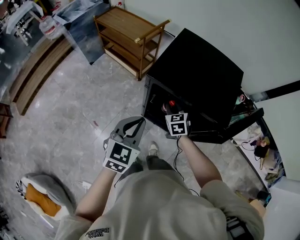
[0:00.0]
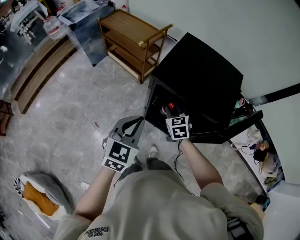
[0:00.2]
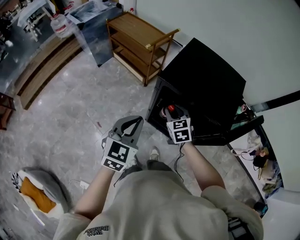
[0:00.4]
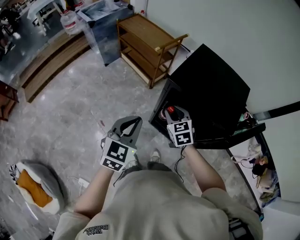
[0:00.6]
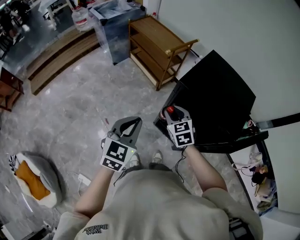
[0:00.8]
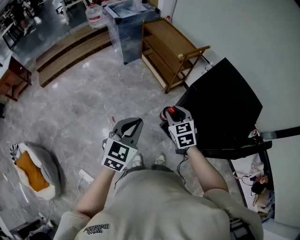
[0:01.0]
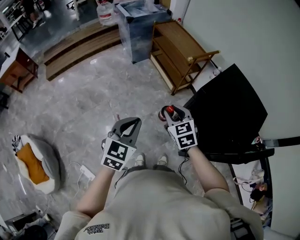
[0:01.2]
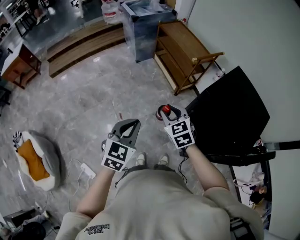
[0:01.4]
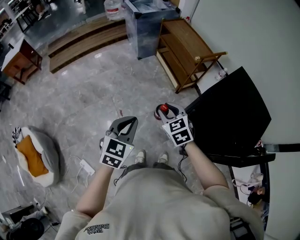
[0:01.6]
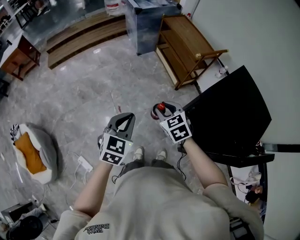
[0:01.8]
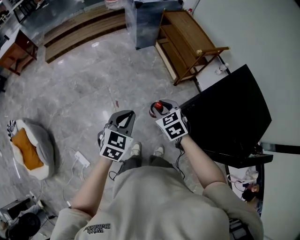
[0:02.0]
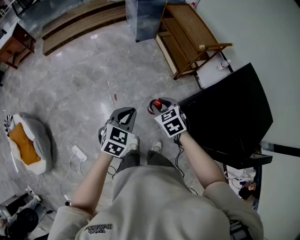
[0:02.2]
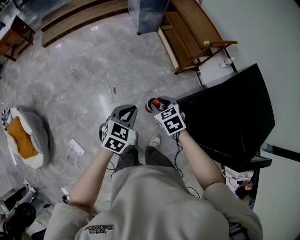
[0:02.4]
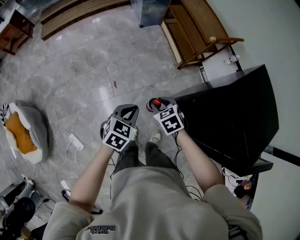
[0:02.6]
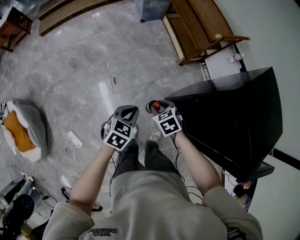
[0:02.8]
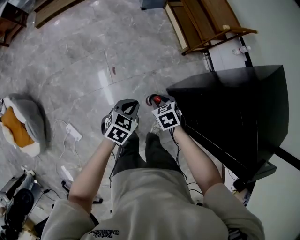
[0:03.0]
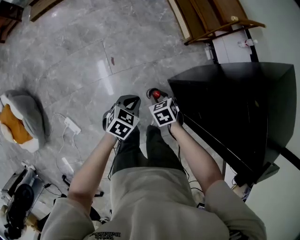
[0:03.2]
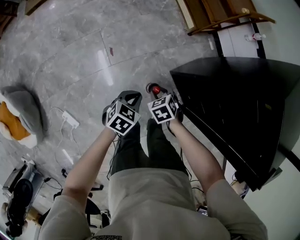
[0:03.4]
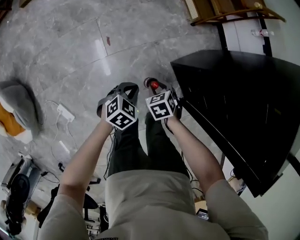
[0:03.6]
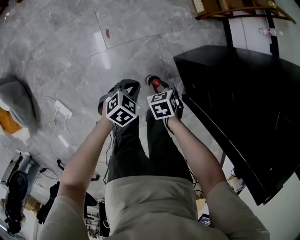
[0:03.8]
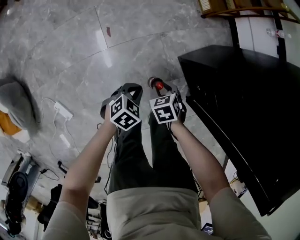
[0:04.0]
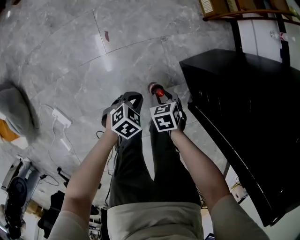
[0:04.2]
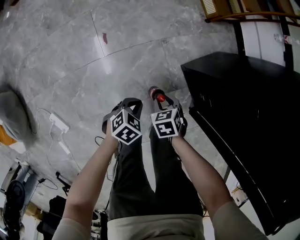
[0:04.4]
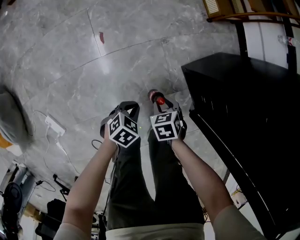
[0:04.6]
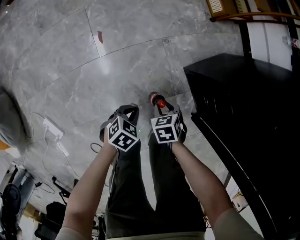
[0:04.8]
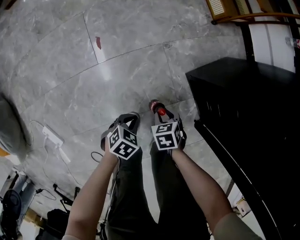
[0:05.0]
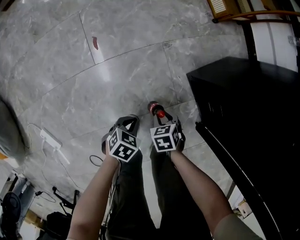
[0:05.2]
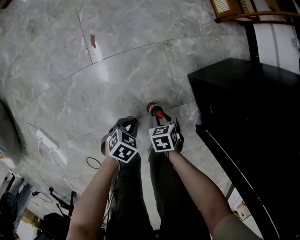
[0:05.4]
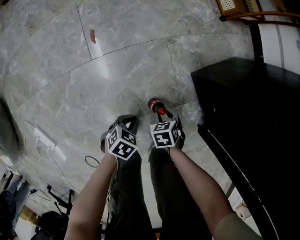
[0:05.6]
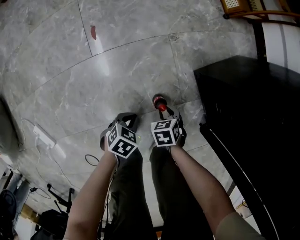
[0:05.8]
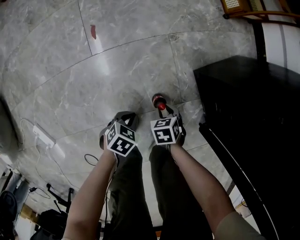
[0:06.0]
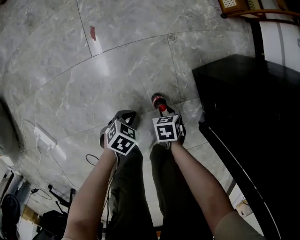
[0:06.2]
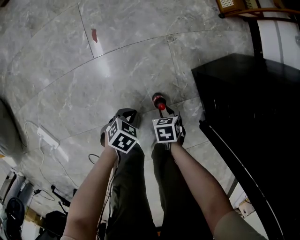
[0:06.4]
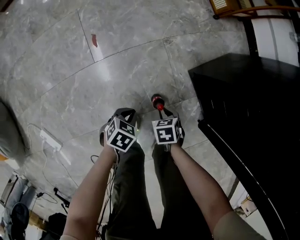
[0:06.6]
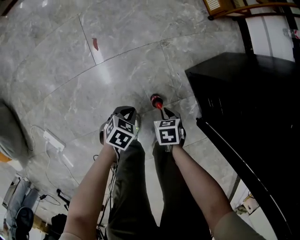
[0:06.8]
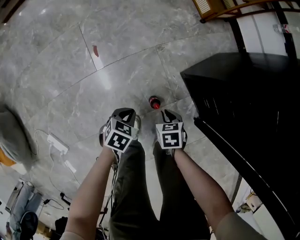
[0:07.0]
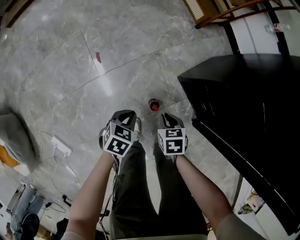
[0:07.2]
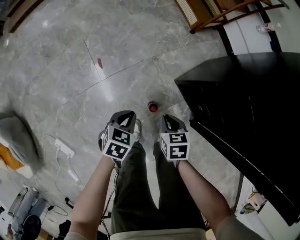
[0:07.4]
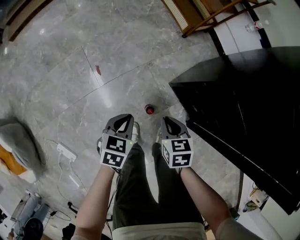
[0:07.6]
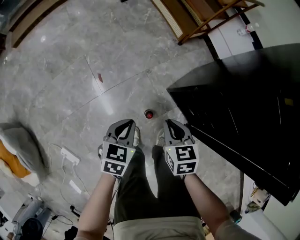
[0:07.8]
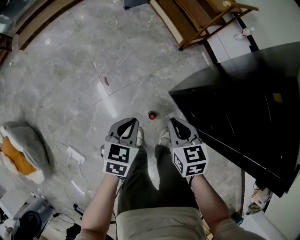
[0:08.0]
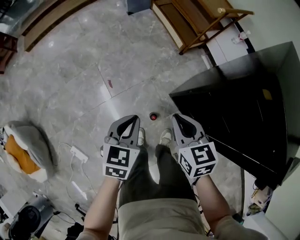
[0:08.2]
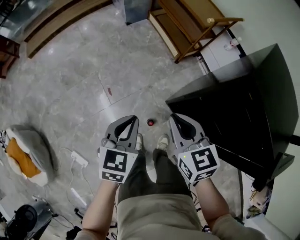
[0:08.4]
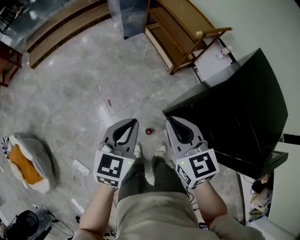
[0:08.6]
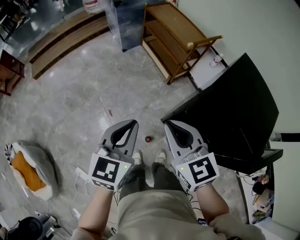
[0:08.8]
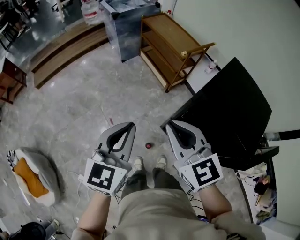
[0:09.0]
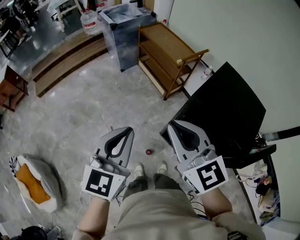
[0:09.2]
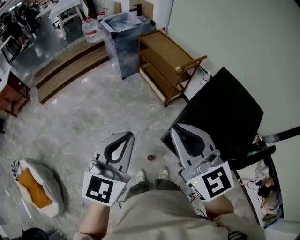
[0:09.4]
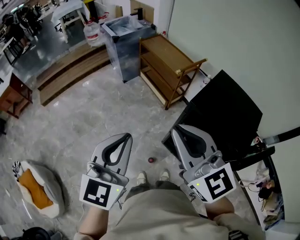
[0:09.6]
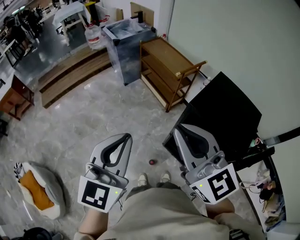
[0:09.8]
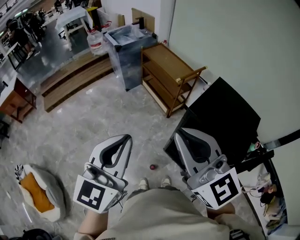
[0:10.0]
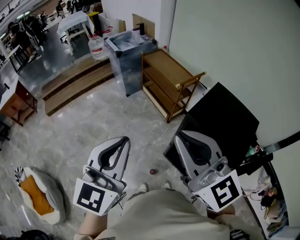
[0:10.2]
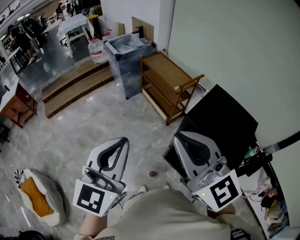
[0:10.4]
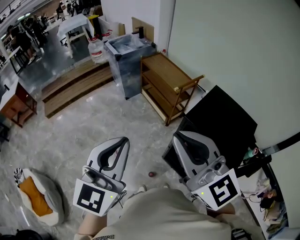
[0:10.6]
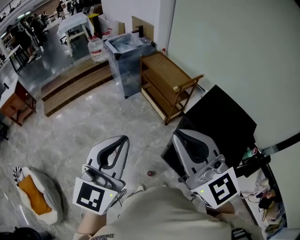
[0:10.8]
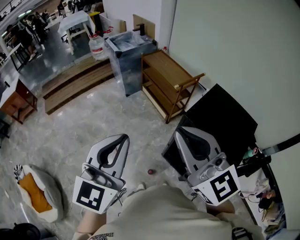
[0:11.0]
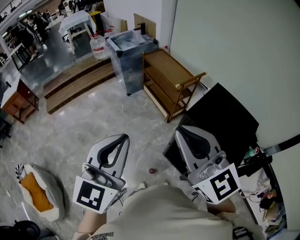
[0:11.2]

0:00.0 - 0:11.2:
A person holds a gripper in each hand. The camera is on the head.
0:00.0 - 0:01.6: The right gripper changes place by roughly 35 cm, and turns by roughly 40 degrees, while the left gripper changes place by some 25 cm, and swivels approximately 30 degrees.
0:01.6 - 0:03.2: The two grippers go about 35 cm downward. The left gripper rotates some 30 degrees; the right gripper changes its angle by roughly 30 degrees.
0:03.2 - 0:04.8: The grippers both shift downward by some 40 cm.
0:04.8 - 0:06.4: Both grippers move downward, roughly 15 cm.
0:06.4 - 0:08.0: Both grippers move upward, about 50 cm. The left gripper changes its angle by roughly 30 degrees, while the right gripper points its fingers roughly 40 degrees further upward, and closes up.
0:08.0 - 0:09.6: Both grippers travel together upward, approximately 50 cm. The left gripper points its fingers some 40 degrees further upward, while the right gripper points its fingers about 40 degrees further upward.
0:09.6 - 0:11.2: The two grippers go about 5 cm upward.

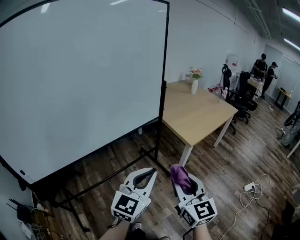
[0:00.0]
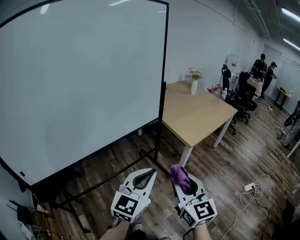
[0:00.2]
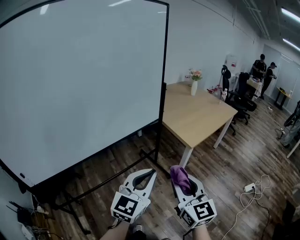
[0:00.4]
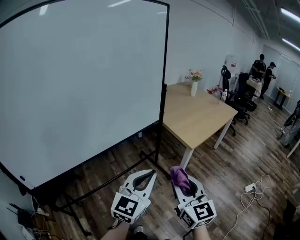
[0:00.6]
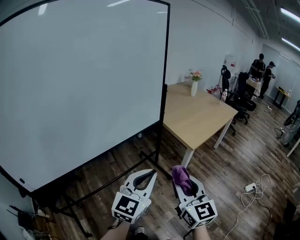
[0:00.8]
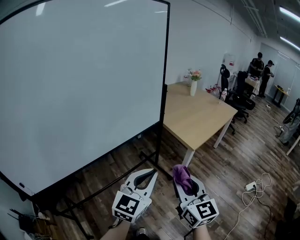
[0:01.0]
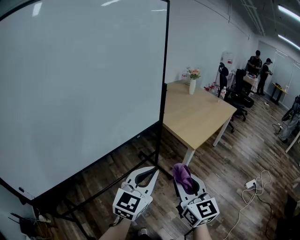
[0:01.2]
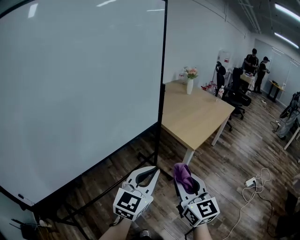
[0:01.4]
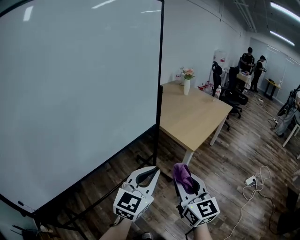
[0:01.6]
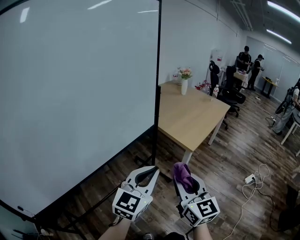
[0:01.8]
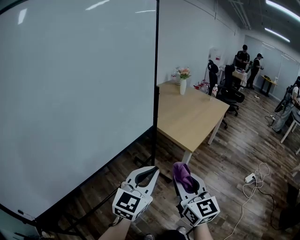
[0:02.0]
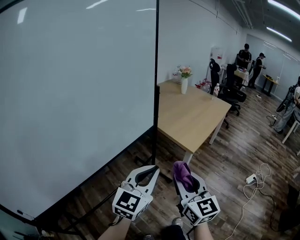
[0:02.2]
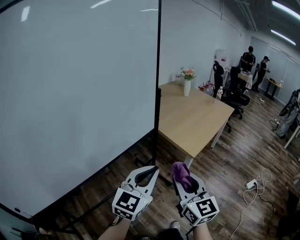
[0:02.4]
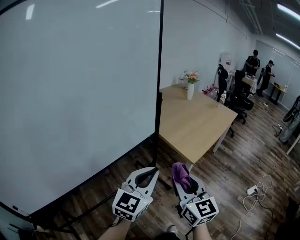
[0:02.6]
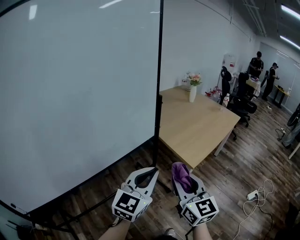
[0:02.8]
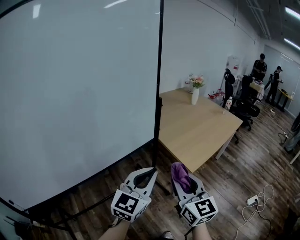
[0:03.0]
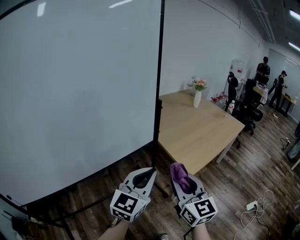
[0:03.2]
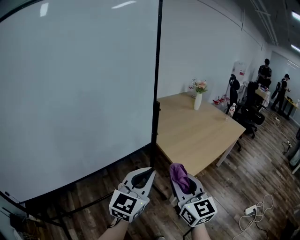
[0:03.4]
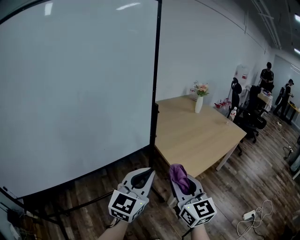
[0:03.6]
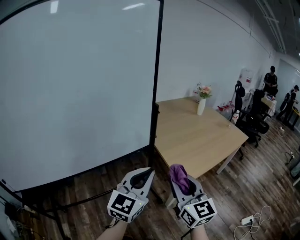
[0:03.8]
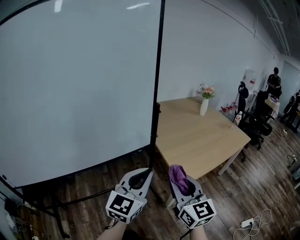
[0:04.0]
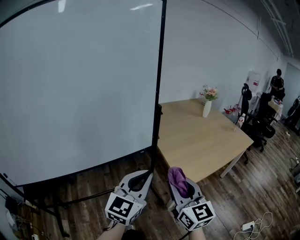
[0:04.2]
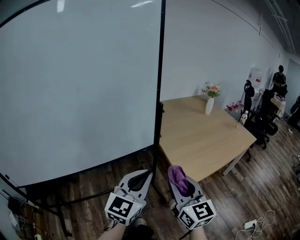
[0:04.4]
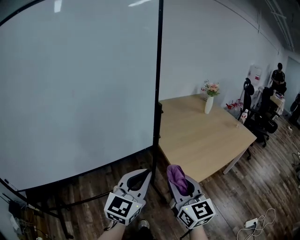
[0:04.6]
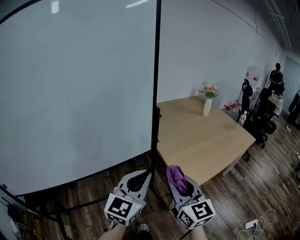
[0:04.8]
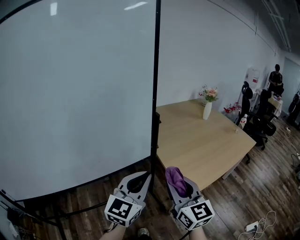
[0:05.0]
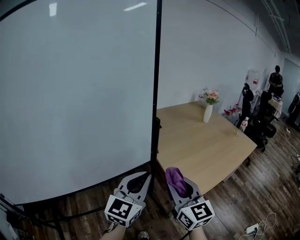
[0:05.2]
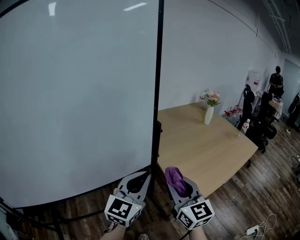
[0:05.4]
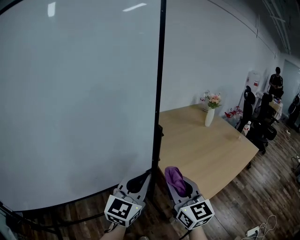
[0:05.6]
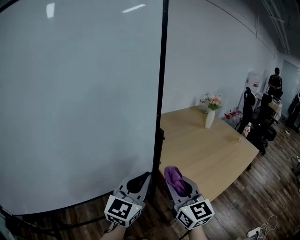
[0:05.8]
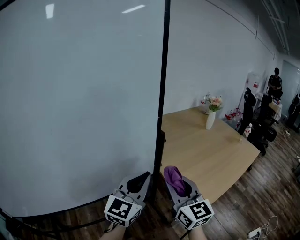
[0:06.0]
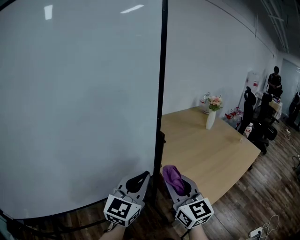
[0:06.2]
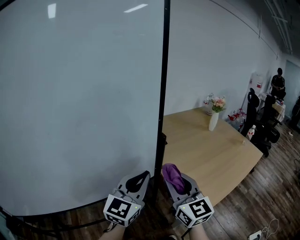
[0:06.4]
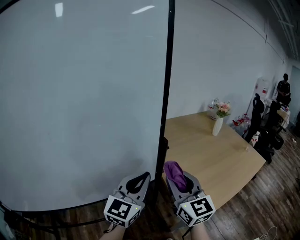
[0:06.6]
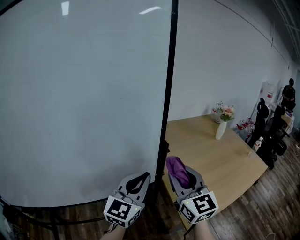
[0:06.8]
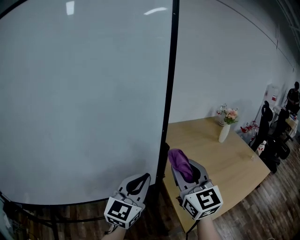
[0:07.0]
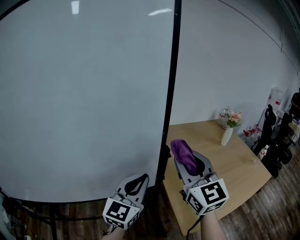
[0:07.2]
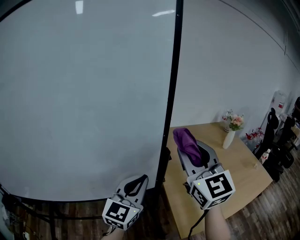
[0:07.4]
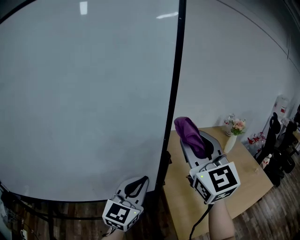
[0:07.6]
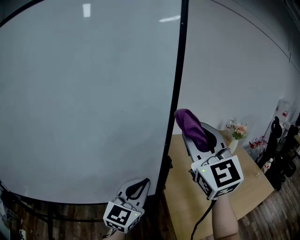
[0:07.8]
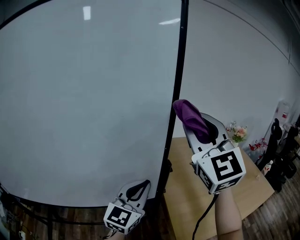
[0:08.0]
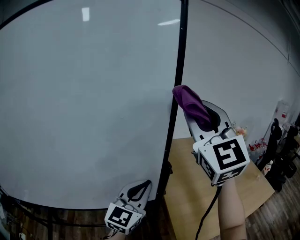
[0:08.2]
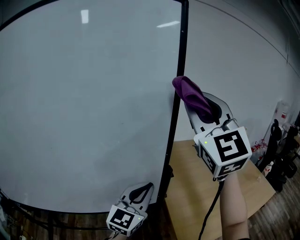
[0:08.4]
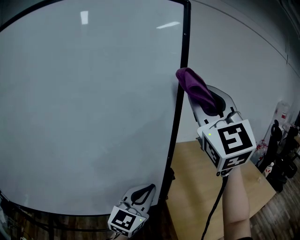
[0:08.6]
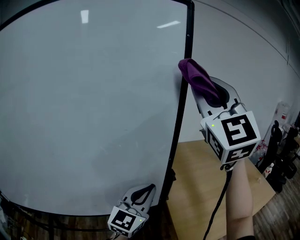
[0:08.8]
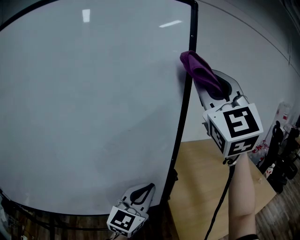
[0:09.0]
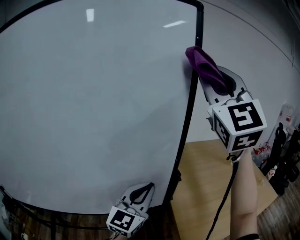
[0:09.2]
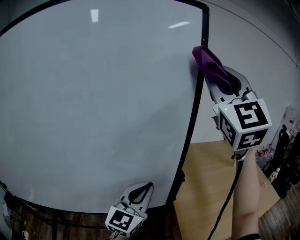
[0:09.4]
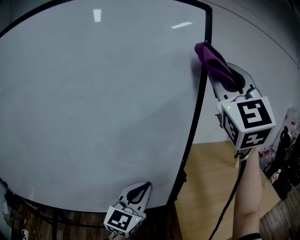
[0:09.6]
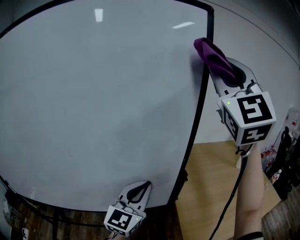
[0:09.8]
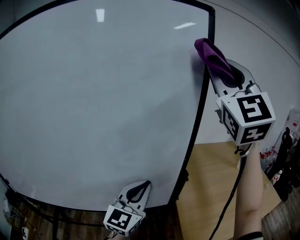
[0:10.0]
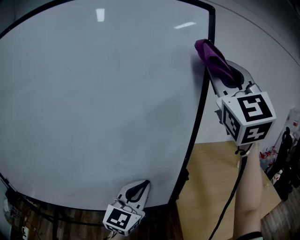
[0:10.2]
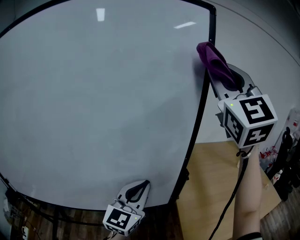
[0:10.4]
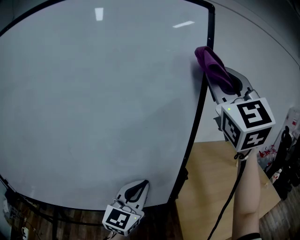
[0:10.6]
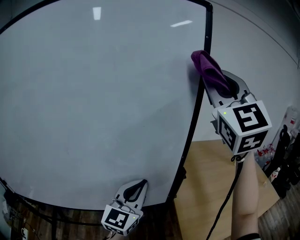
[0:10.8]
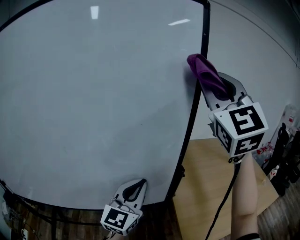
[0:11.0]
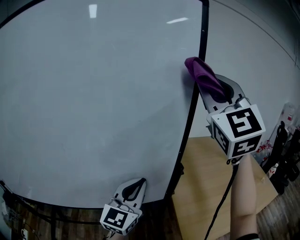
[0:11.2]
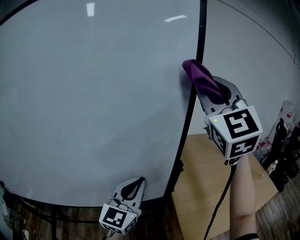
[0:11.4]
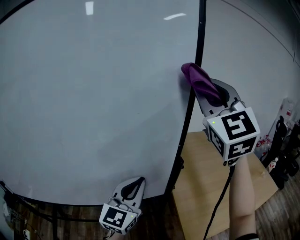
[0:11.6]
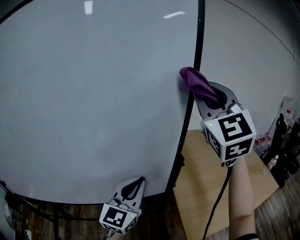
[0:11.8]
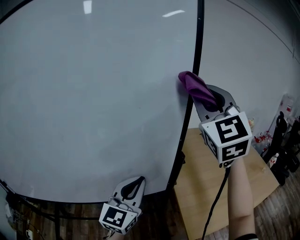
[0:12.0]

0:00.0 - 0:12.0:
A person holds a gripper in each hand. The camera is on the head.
0:00.0 - 0:01.6: Both grippers travel together forward and to the left, roughly 10 cm.
0:01.6 - 0:03.0: Both grippers move forward, about 15 cm.
0:03.0 - 0:04.4: The grippers both shift to the right by some 5 cm.
0:04.4 - 0:06.0: Both grippers travel together forward, about 20 cm.
0:06.0 - 0:07.6: The left gripper is displaced forward by some 5 cm; the right gripper travels upward and forward by approximately 25 cm, and changes its angle by some 30 degrees.
0:07.6 - 0:09.0: The right gripper travels upward by about 20 cm, and changes its angle by about 20 degrees.
0:09.0 - 0:10.4: The left gripper goes some 5 cm to the left.
0:10.4 - 0:12.0: The right gripper goes about 10 cm downward.

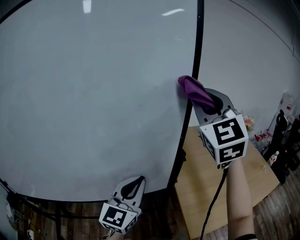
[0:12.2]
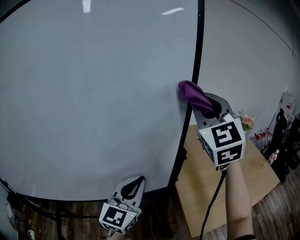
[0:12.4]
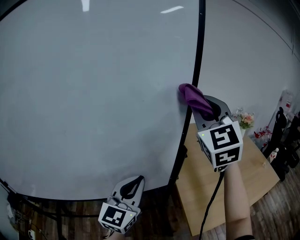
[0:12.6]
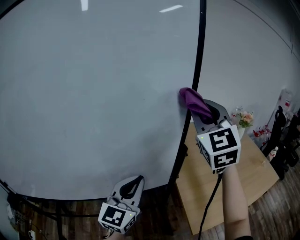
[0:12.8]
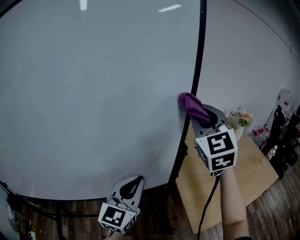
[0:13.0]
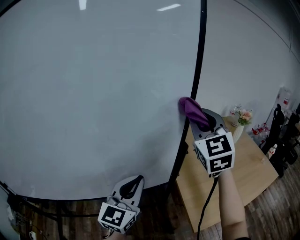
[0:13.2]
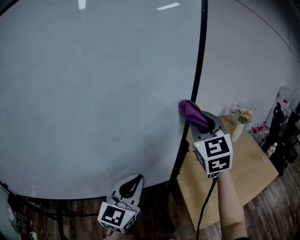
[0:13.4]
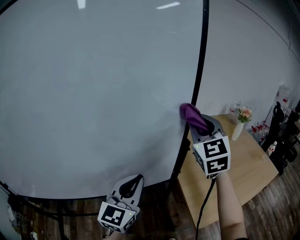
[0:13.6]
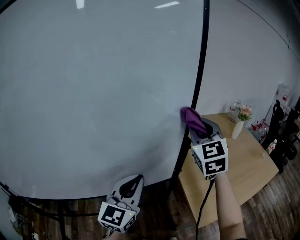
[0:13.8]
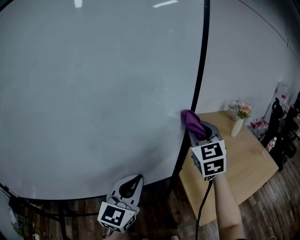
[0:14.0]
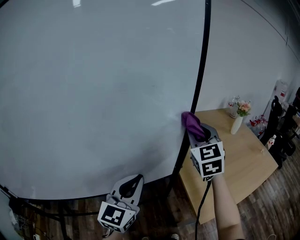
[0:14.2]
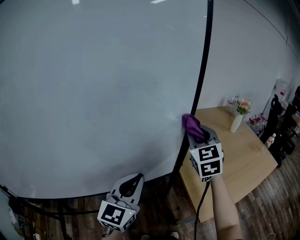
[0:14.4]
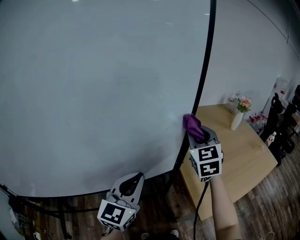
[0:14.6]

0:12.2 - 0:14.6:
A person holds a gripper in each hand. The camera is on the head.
0:12.2 - 0:13.4: The right gripper shifts roughly 10 cm downward.
0:13.4 - 0:14.6: The right gripper goes approximately 10 cm downward.
